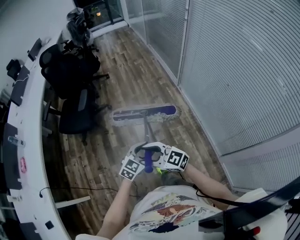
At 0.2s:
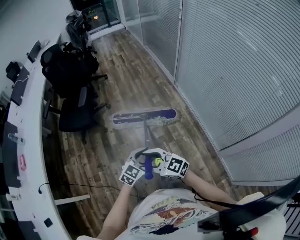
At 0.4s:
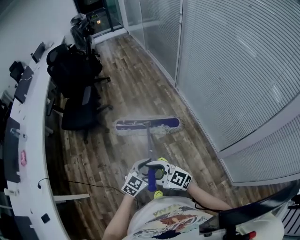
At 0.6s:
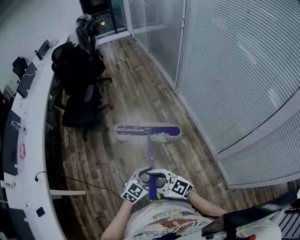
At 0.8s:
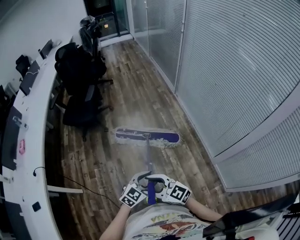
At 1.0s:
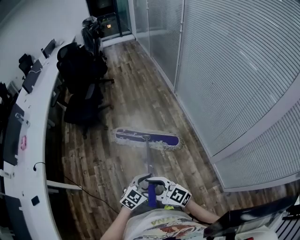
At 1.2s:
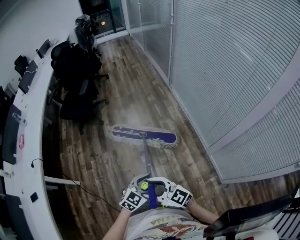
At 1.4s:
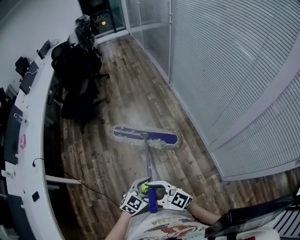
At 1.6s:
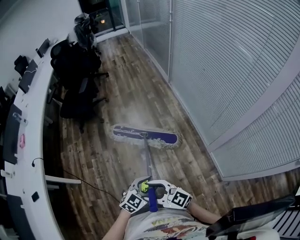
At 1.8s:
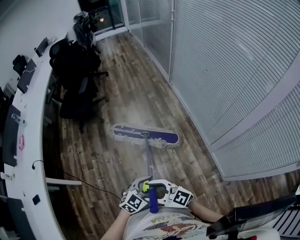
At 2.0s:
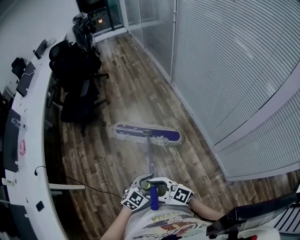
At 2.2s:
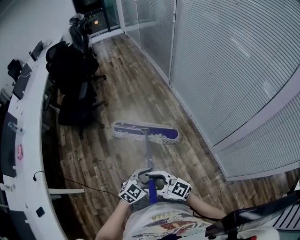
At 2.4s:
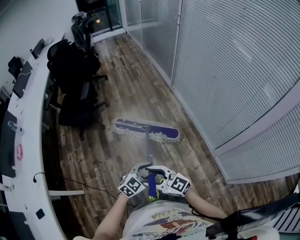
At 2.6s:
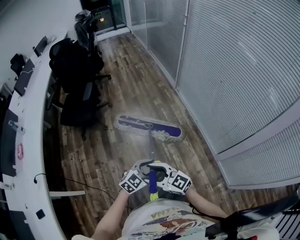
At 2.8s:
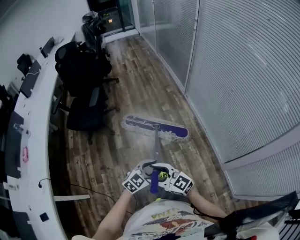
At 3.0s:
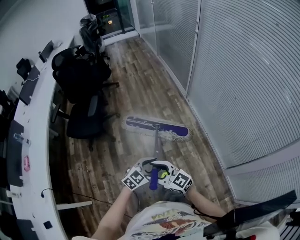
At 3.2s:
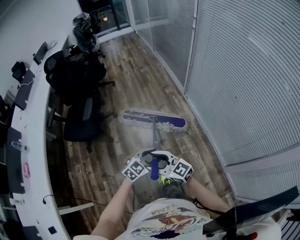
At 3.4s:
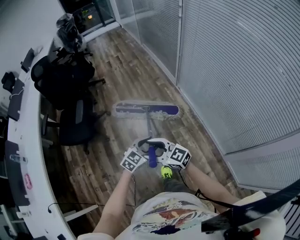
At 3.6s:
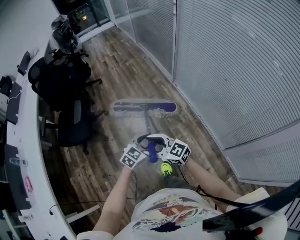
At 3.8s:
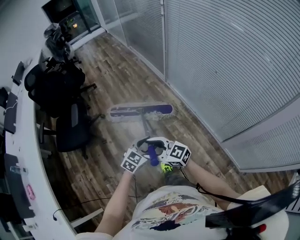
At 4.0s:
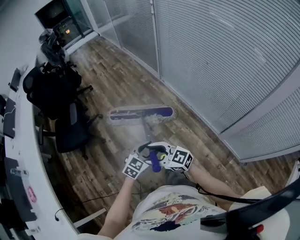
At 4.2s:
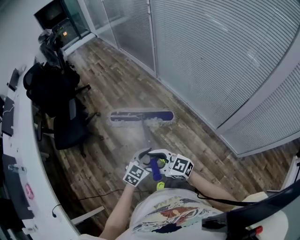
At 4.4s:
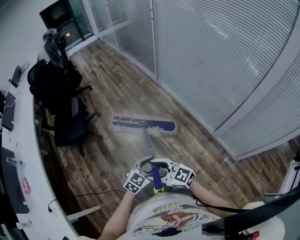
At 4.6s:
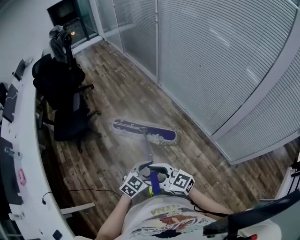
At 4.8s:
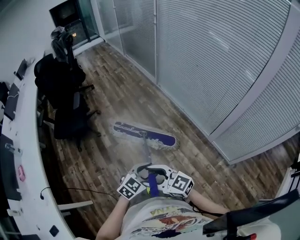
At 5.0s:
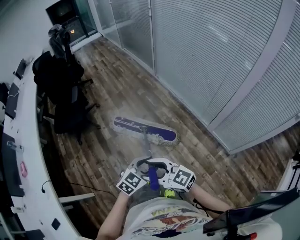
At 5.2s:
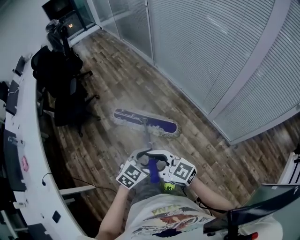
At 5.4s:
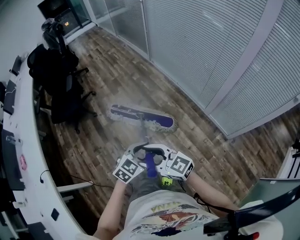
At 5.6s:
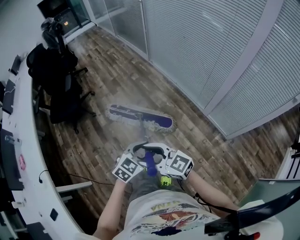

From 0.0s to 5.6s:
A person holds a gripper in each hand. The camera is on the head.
From 0.0s to 1.4s: The pair of grippers is taken backward, roughly 50 cm.
From 1.4s to 2.8s: The right gripper changes place by about 40 cm; the left gripper moves about 35 cm.
From 2.8s to 4.2s: The left gripper travels forward and back again, roughly 25 cm each way. Meanwhile the right gripper reaches some 25 cm forward, then returns.
From 4.2s to 5.6s: The two grippers go some 30 cm backward.

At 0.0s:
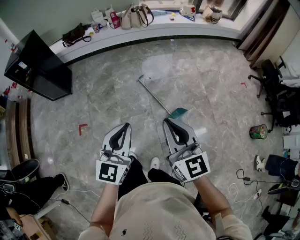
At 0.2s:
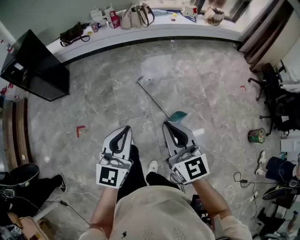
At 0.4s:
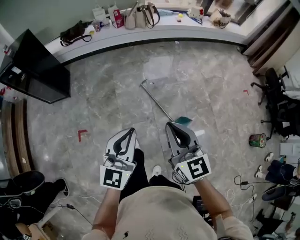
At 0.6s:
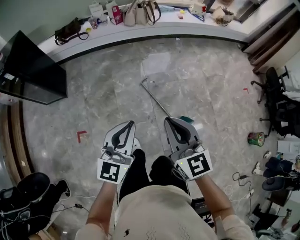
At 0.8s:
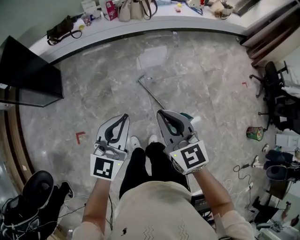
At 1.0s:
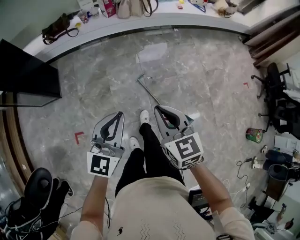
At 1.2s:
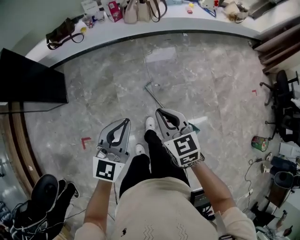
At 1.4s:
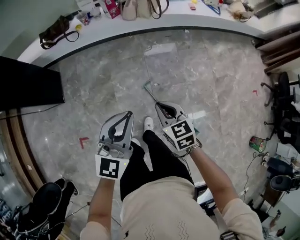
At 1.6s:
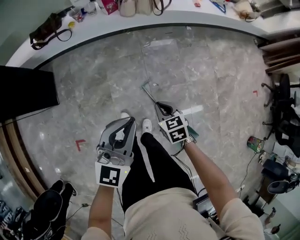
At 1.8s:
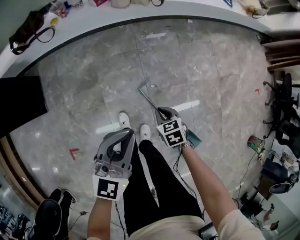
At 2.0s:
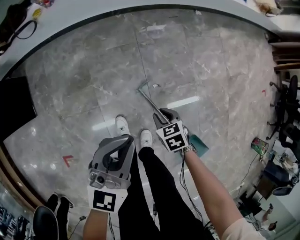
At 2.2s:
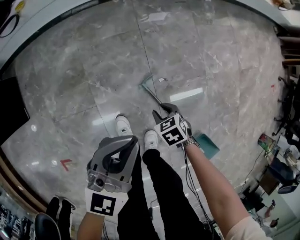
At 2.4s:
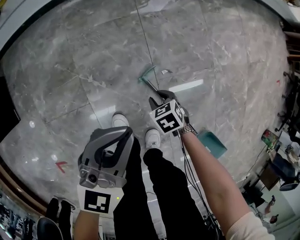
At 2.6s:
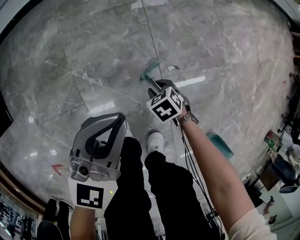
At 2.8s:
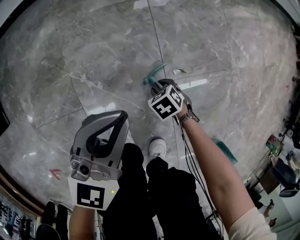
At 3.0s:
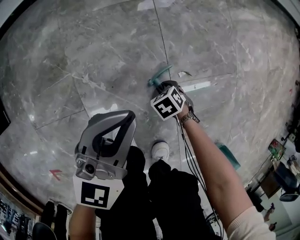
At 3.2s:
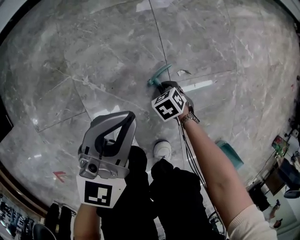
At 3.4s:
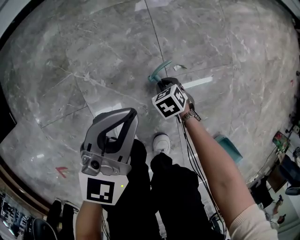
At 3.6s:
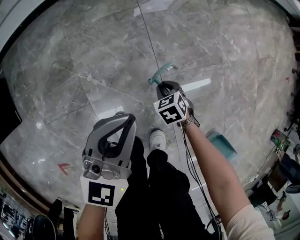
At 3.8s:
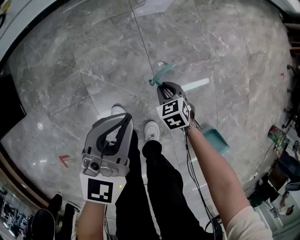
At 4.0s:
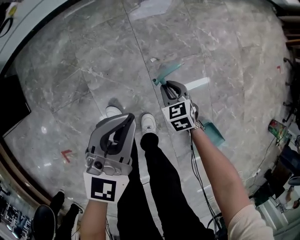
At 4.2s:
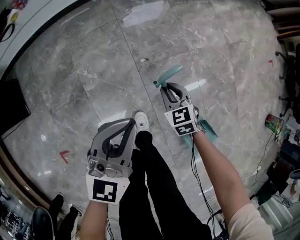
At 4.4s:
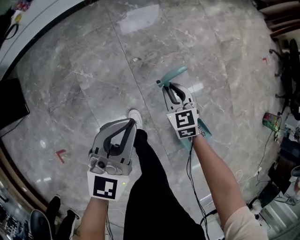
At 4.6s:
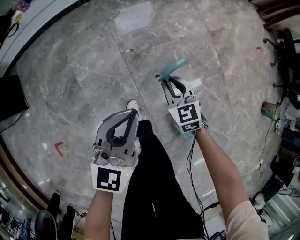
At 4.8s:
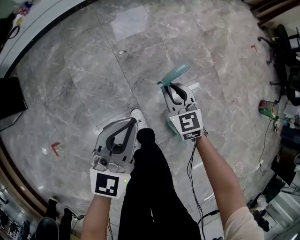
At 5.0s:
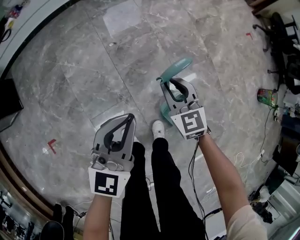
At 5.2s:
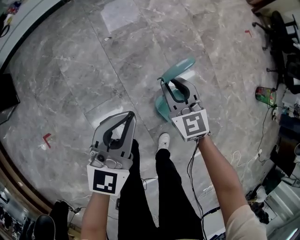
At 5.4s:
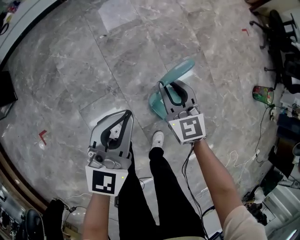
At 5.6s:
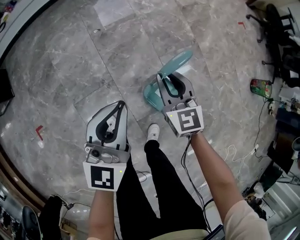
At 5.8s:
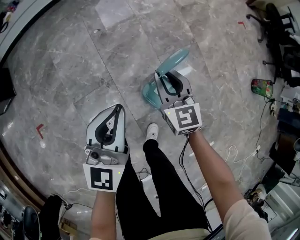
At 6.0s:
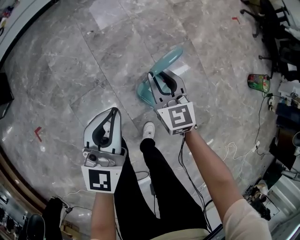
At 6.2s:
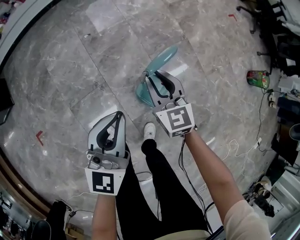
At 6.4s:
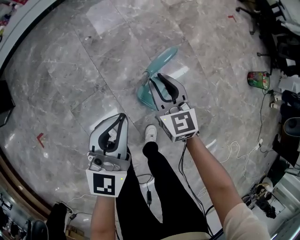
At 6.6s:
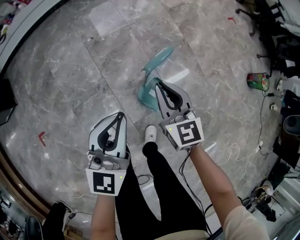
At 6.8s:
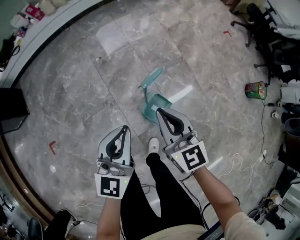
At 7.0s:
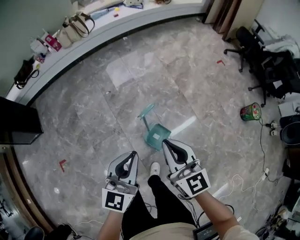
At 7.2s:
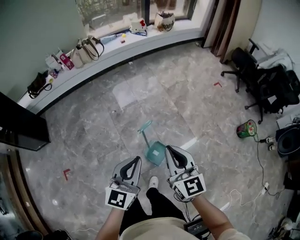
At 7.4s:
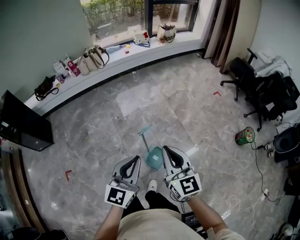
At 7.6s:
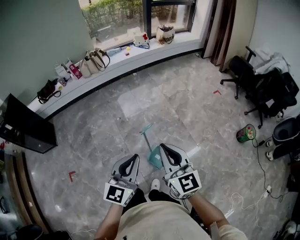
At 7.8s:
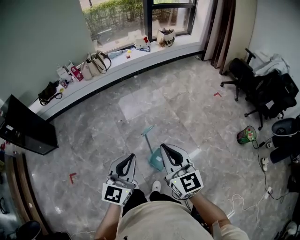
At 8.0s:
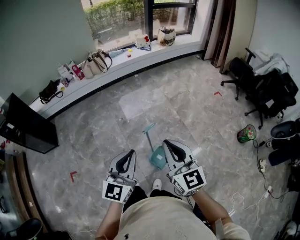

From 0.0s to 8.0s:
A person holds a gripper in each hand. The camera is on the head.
From 0.0s to 1.6s: Both grippers are carried forward, approximately 60 cm. The right gripper goes approximately 40 cm downward, and tips its fingers downward by about 50 degrees.
From 1.6s to 3.2s: The grippers both shift downward by some 70 cm. The right gripper tilts its fingers some 30 degrees downward.
From 3.2s to 4.8s: The right gripper heads upward, covering about 60 cm, and angles its fingers upward, by about 50 degrees, while the left gripper moves approximately 60 cm.
From 4.8s to 6.4s: Both grippers travel together to the right and backward, approximately 25 cm.
From 6.4s to 8.0s: Both grippers move upward, roughly 50 cm. The right gripper changes its angle by about 20 degrees.

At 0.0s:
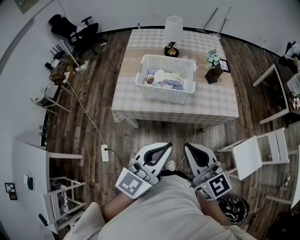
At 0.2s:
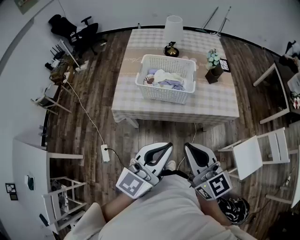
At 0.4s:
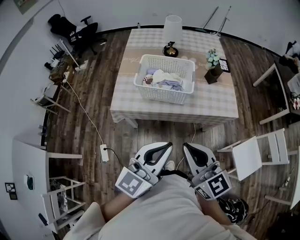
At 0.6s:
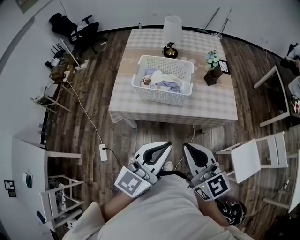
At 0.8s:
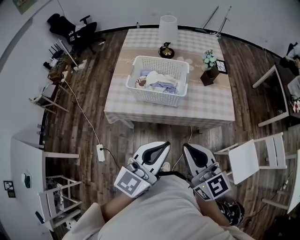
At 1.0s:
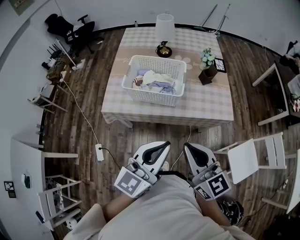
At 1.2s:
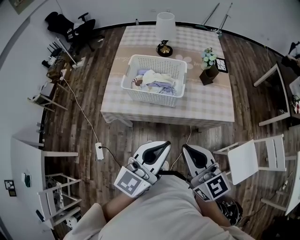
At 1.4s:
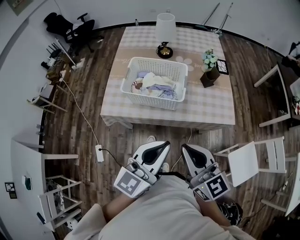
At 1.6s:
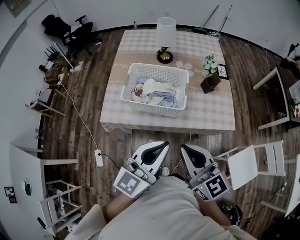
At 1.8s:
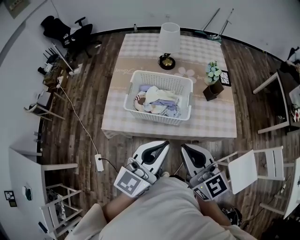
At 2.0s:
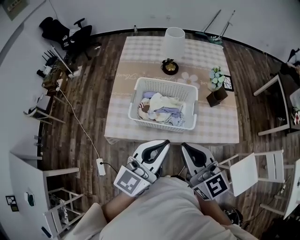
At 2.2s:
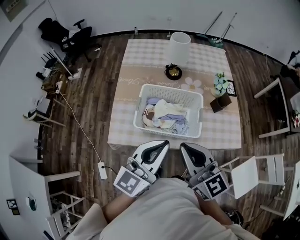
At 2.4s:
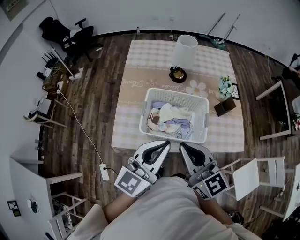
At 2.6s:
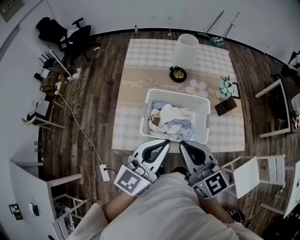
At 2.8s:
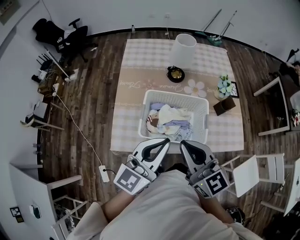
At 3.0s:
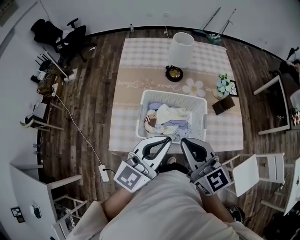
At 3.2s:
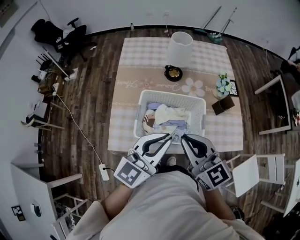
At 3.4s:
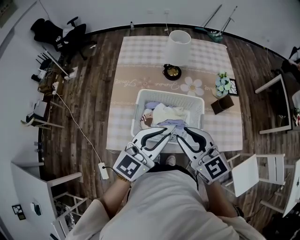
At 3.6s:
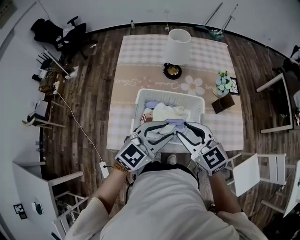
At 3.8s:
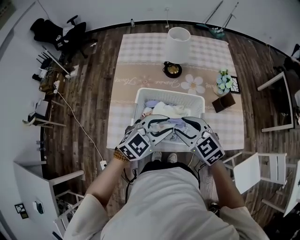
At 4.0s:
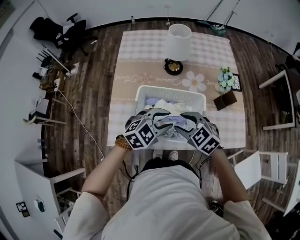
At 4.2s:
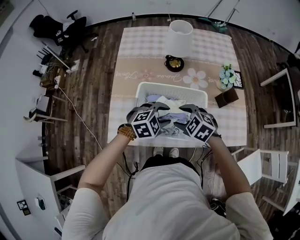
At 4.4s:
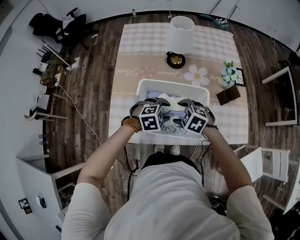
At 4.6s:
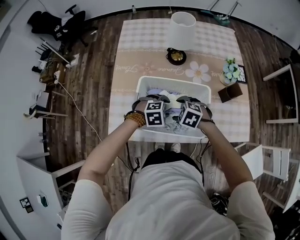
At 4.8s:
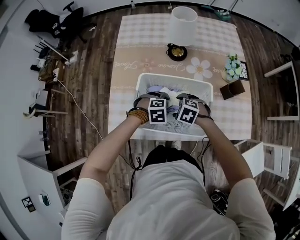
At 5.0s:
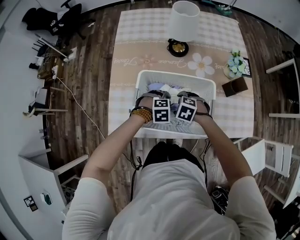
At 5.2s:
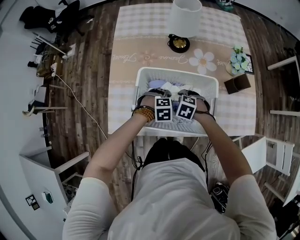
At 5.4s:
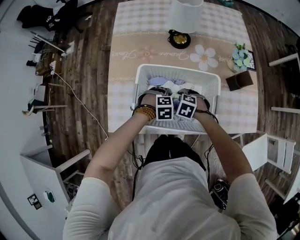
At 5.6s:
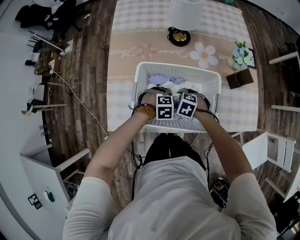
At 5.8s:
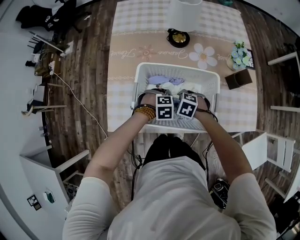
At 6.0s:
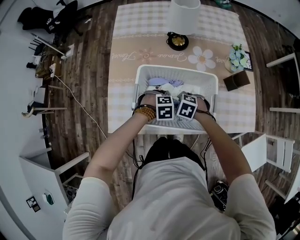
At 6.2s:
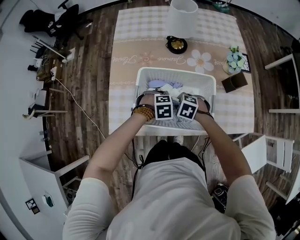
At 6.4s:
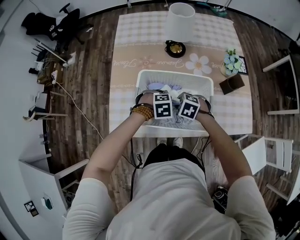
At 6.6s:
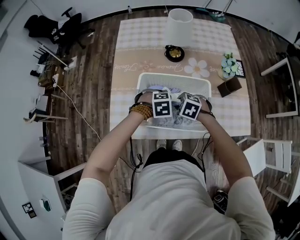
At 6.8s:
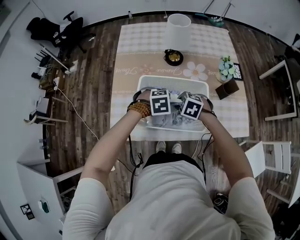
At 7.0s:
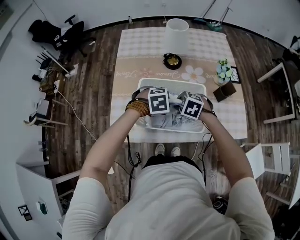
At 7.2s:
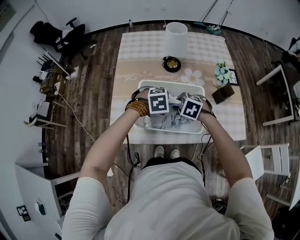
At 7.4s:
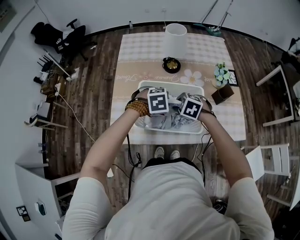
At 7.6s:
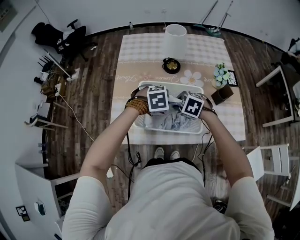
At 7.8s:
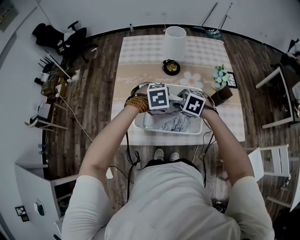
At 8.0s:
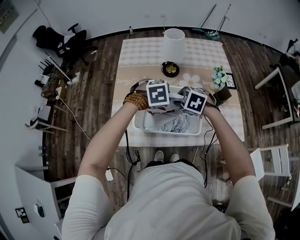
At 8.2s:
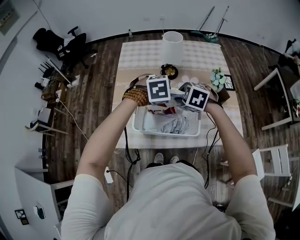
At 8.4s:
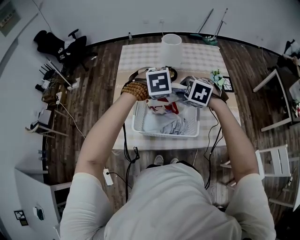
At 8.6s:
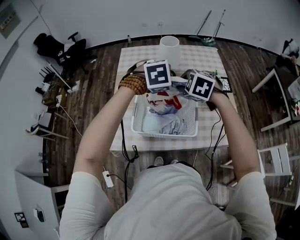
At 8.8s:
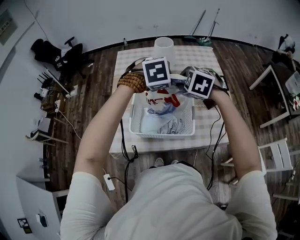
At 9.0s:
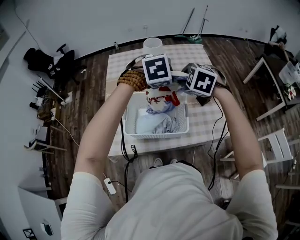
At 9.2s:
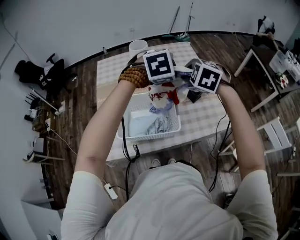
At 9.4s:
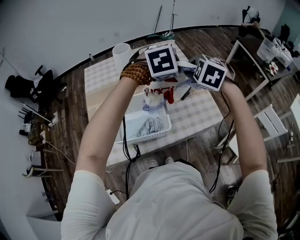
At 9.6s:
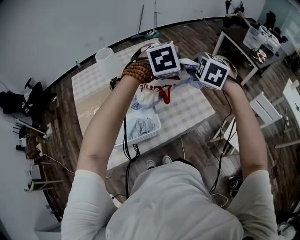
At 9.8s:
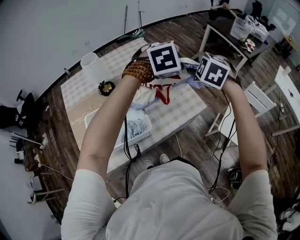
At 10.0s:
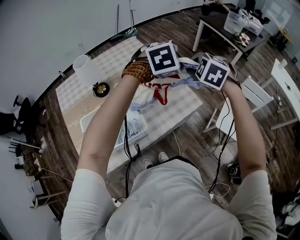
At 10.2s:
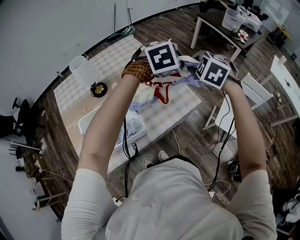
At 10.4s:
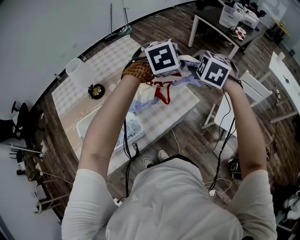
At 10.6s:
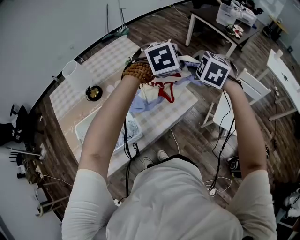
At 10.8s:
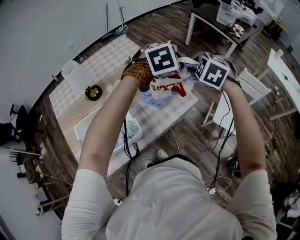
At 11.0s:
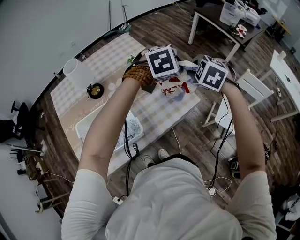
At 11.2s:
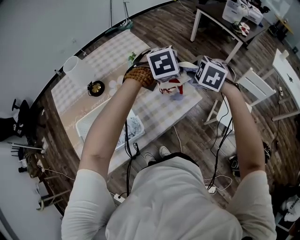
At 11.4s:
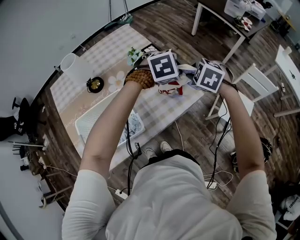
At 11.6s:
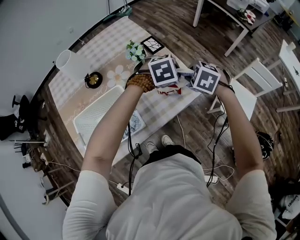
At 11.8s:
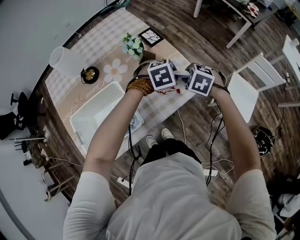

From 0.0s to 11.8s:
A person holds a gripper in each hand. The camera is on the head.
From 0.0s to 1.4s: Both grippers travel together forward and to the right, approximately 10 cm.
From 1.4s to 3.0s: The grippers both shift forward and to the left by about 25 cm.
From 3.0s to 4.4s: Both grippers travel together downward, about 25 cm. The right gripper tips its fingers downward by approximately 50 degrees, and opens its fingers, while the left gripper points its fingers approximately 60 degrees further downward, and opens.
From 4.4s to 6.0s: The grippers both shift downward by roughly 15 cm. The left gripper closes. The right gripper closes.
From 6.0s to 7.4s: The two grippers go some 15 cm upward.
From 7.4s to 8.8s: The two grippers go roughly 20 cm upward.
From 8.8s to 10.4s: The left gripper moves about 40 cm, and swivels approximately 40 degrees; the right gripper shifts by roughly 40 cm, and swivels about 40 degrees.
From 10.4s to 11.8s: Both grippers move downward, some 25 cm. The left gripper changes its angle by approximately 20 degrees.
